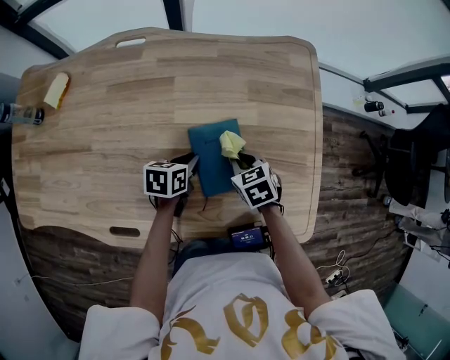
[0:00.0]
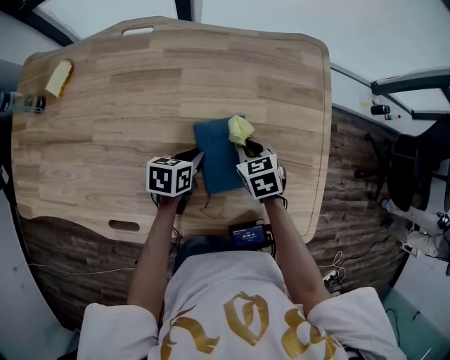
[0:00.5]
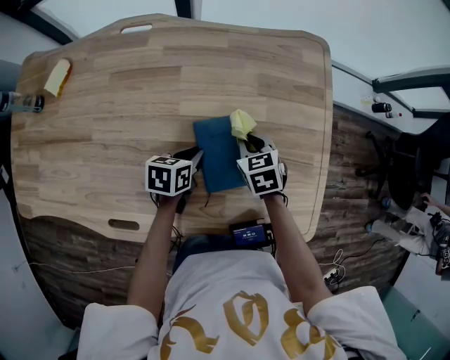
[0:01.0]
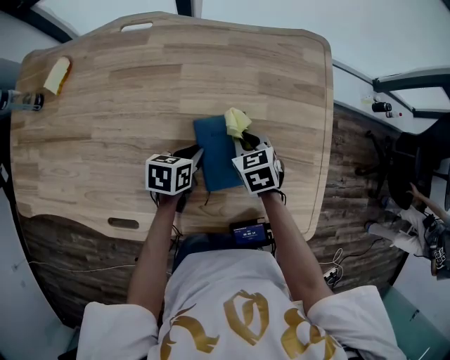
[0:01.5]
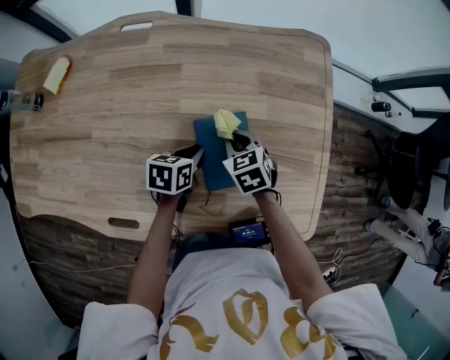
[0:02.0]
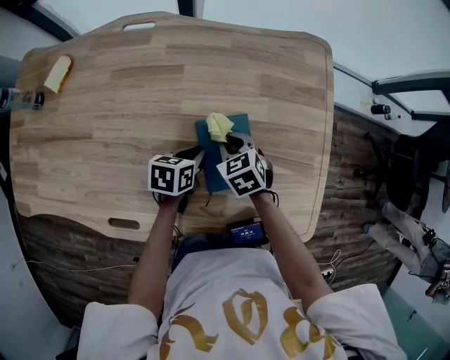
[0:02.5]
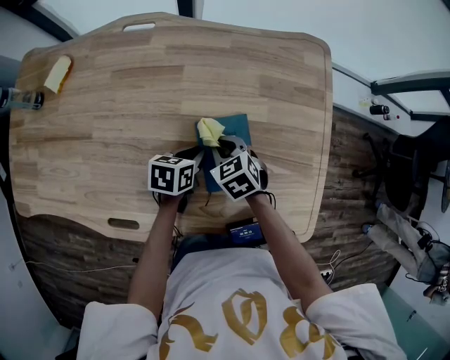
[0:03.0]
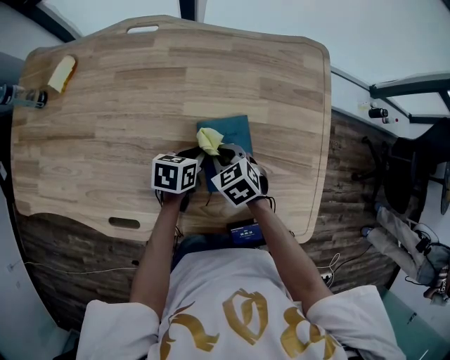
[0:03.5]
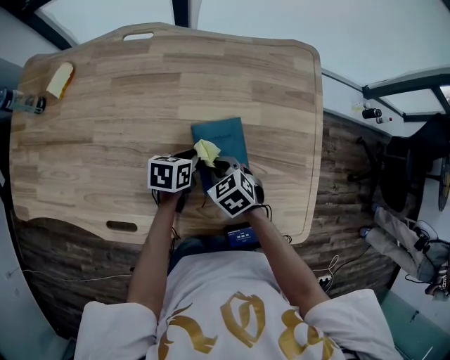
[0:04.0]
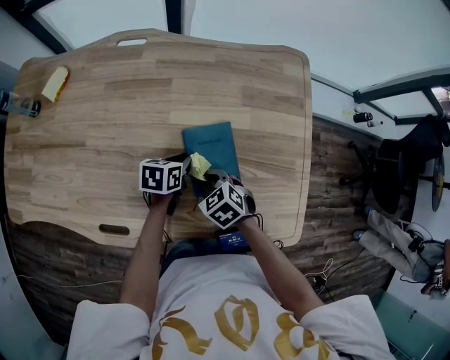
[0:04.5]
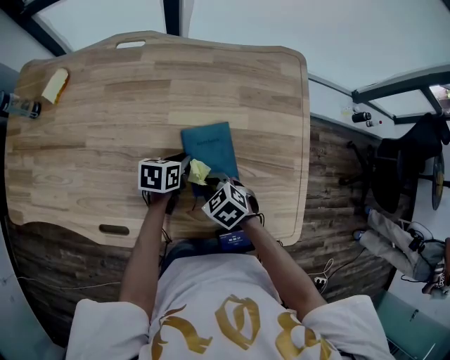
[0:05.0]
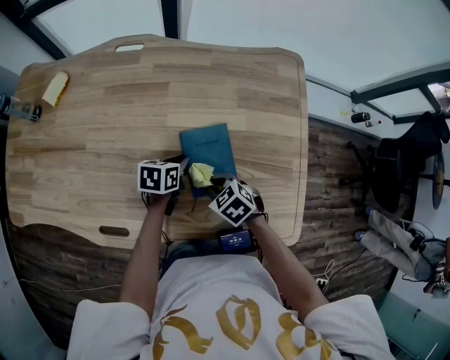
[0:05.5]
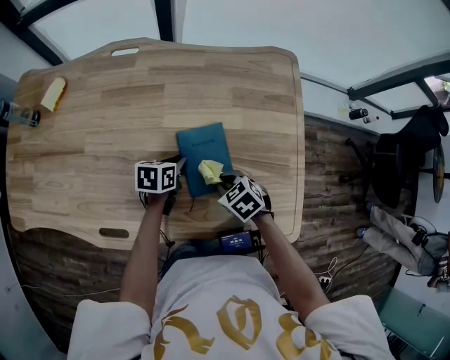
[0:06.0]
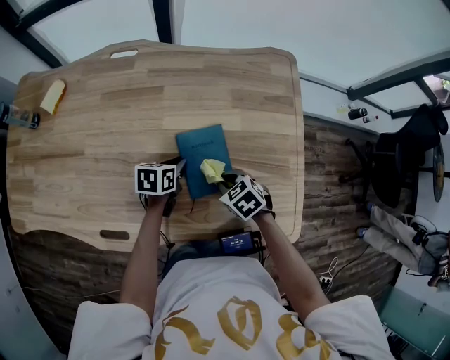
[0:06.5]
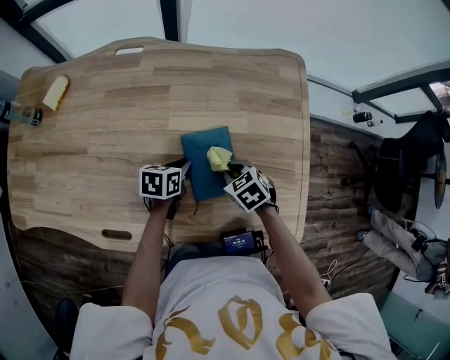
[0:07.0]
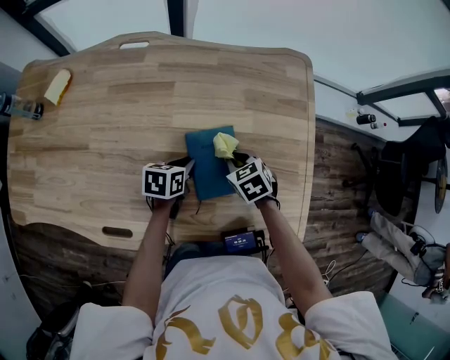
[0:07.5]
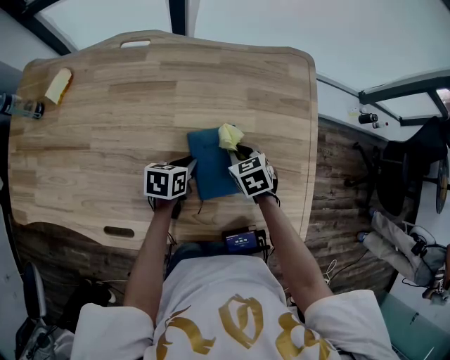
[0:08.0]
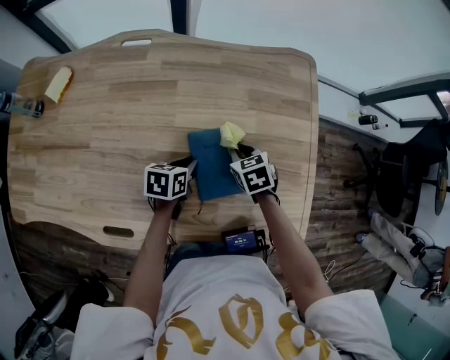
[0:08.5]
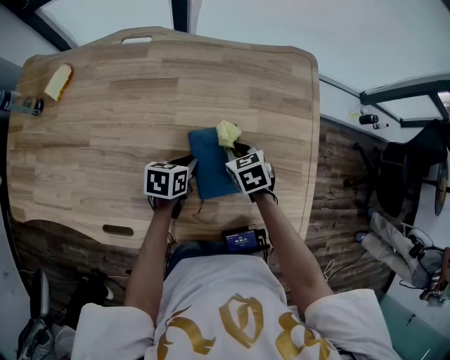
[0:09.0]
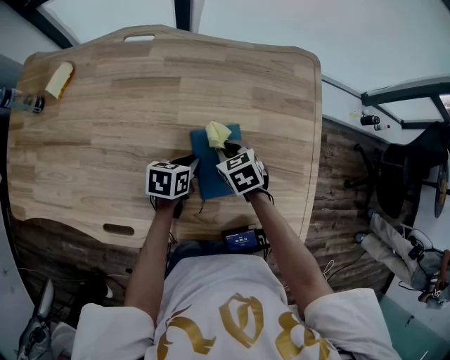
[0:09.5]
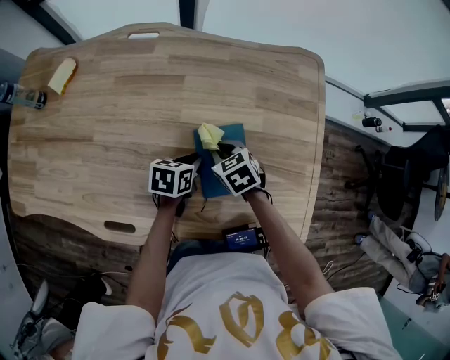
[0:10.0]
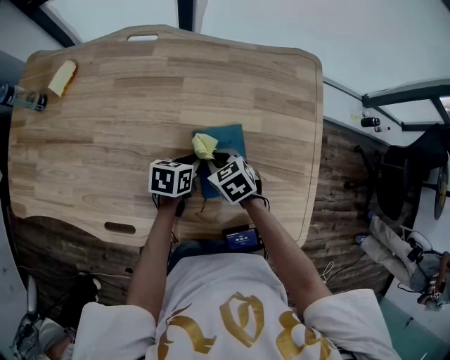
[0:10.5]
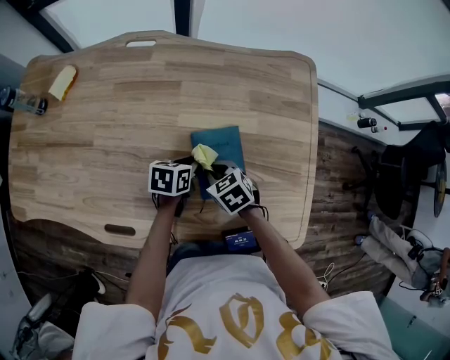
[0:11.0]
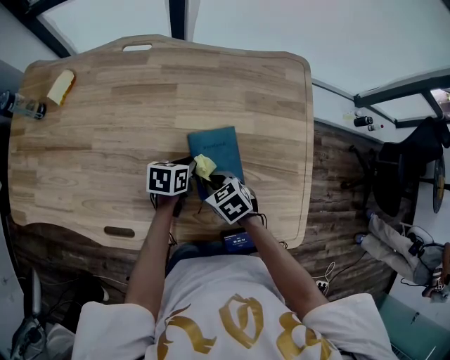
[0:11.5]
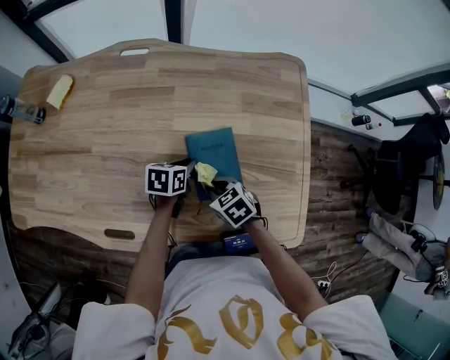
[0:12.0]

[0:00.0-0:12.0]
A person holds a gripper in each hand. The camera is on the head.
0:00.0 to 0:02.0: The right gripper ends up approximately 5 cm from where it was.
0:02.0 to 0:04.0: The right gripper shifts roughly 10 cm backward.
0:04.0 to 0:06.0: The right gripper is displaced to the right by roughly 5 cm.
0:06.0 to 0:08.0: The right gripper moves forward, about 10 cm.
0:08.0 to 0:10.0: The right gripper shifts approximately 10 cm to the left.
0:10.0 to 0:12.0: The right gripper goes some 10 cm backward.

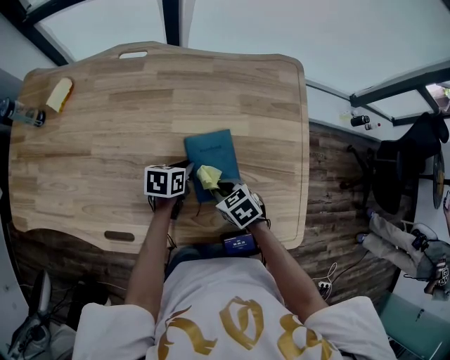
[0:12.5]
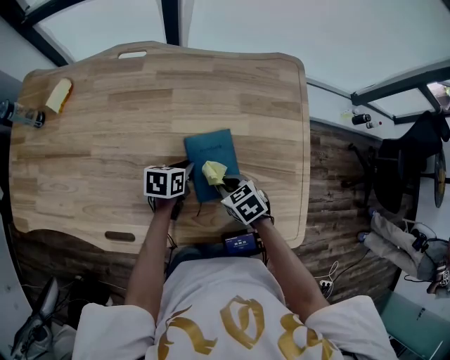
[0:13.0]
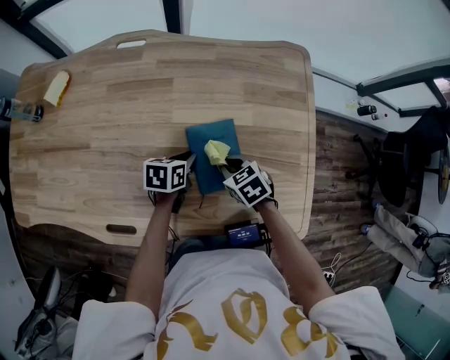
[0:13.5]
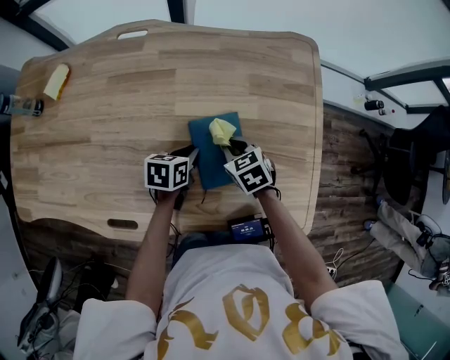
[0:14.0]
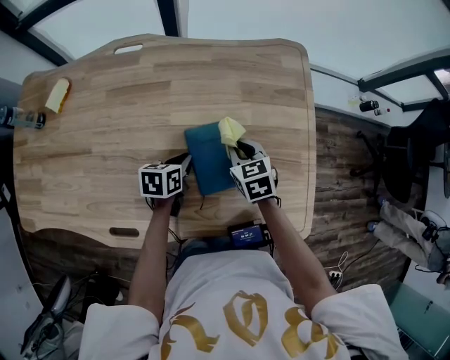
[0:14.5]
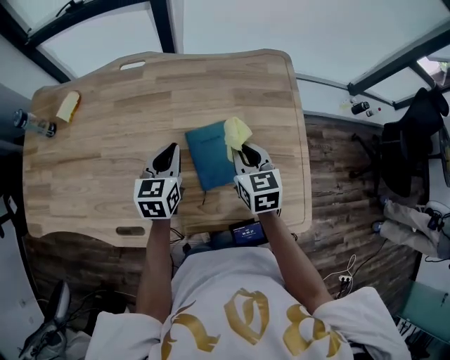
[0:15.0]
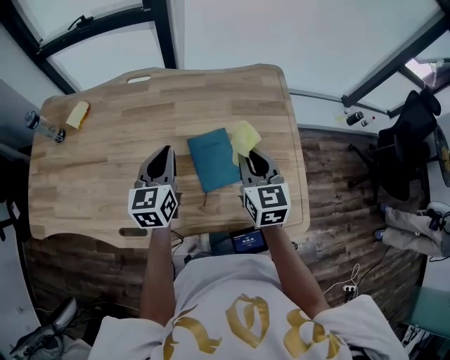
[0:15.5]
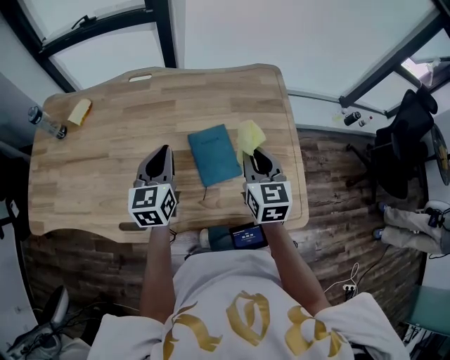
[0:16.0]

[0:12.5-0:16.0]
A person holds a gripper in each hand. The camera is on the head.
0:12.5 to 0:14.5: The right gripper is displaced forward by roughly 10 cm, and rotates some 20 degrees.
0:14.5 to 0:16.0: The right gripper is displaced upward and backward by some 20 cm, and turns by roughly 30 degrees. Meanwhile the left gripper shifts about 25 cm upward, and tips its fingers upward by roughly 30 degrees.

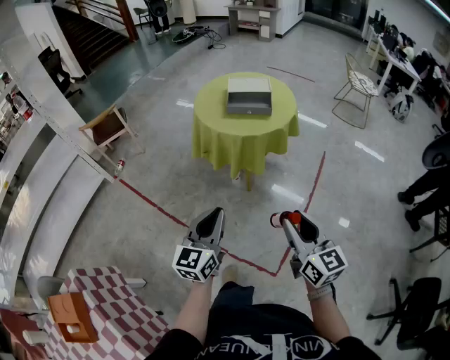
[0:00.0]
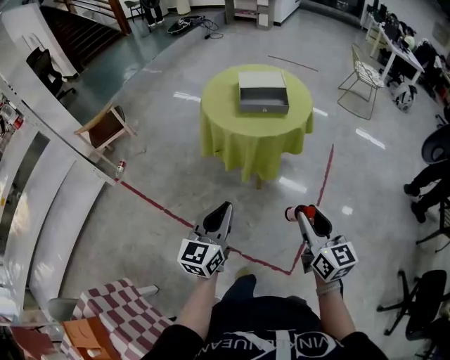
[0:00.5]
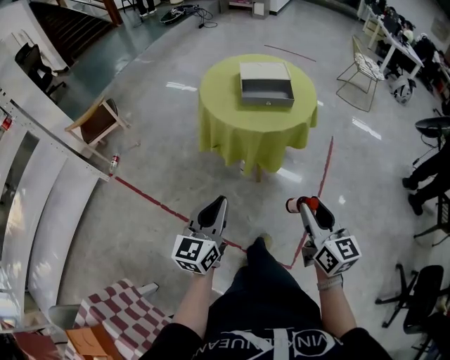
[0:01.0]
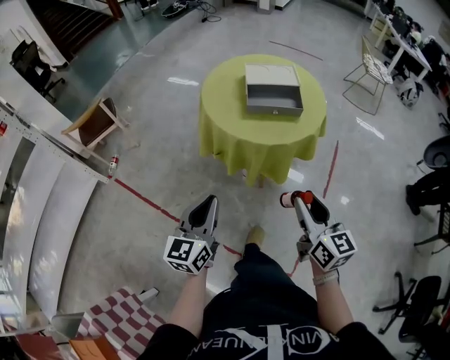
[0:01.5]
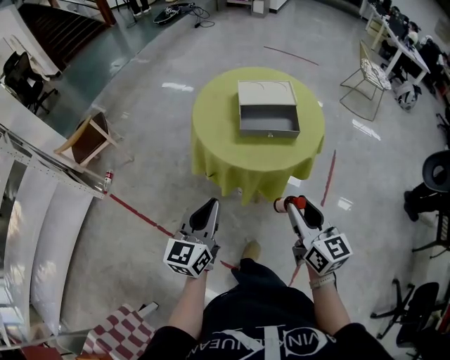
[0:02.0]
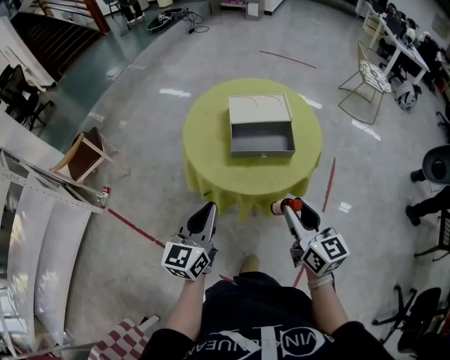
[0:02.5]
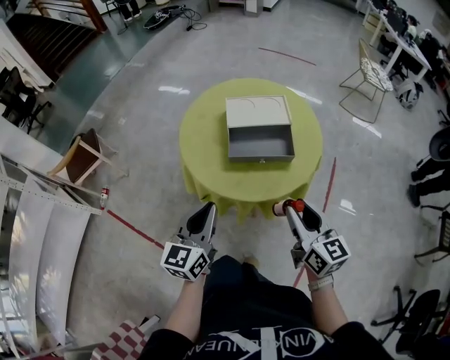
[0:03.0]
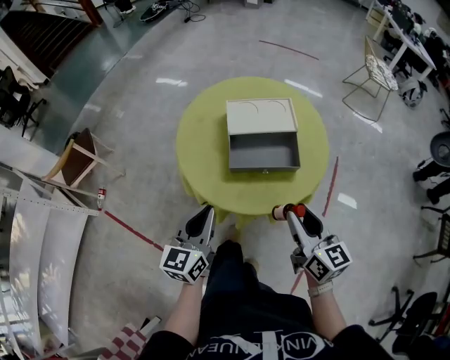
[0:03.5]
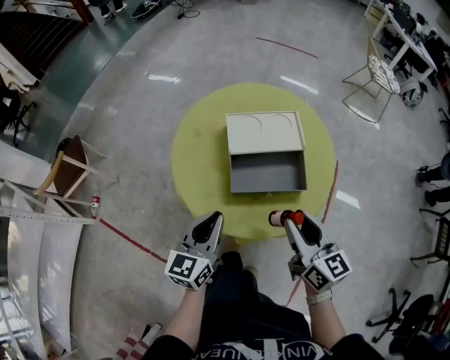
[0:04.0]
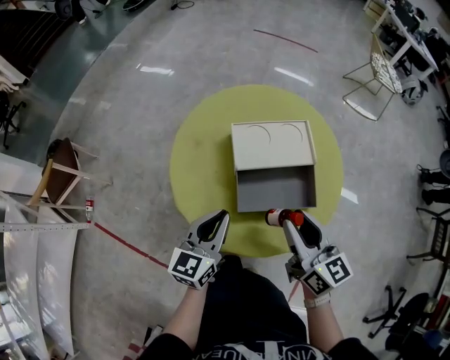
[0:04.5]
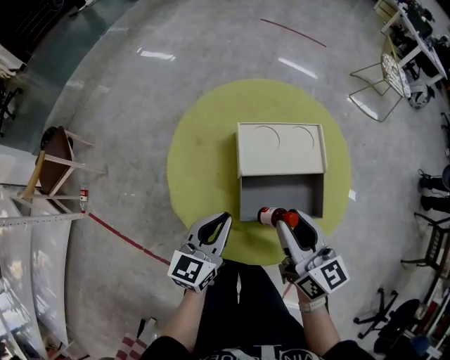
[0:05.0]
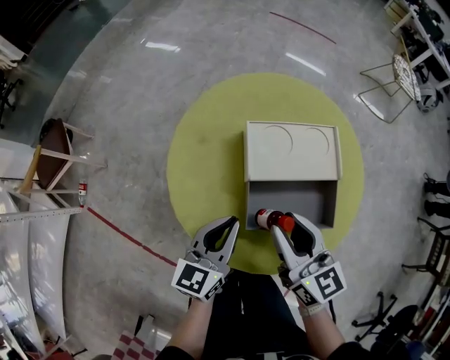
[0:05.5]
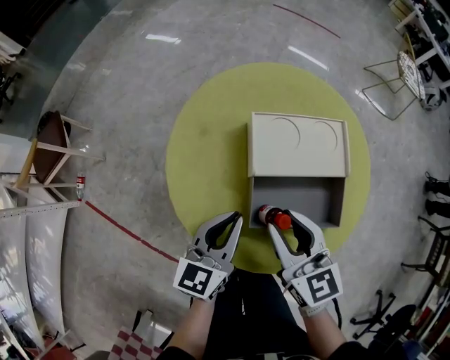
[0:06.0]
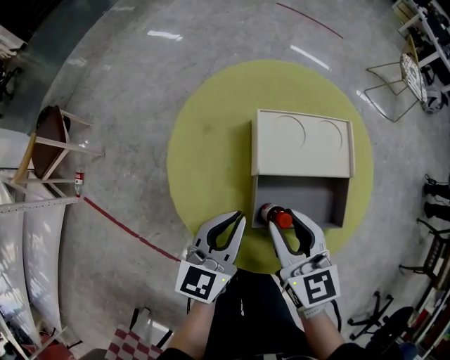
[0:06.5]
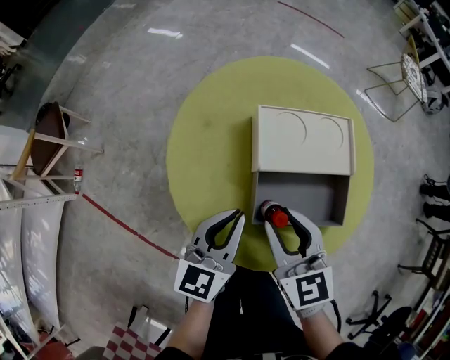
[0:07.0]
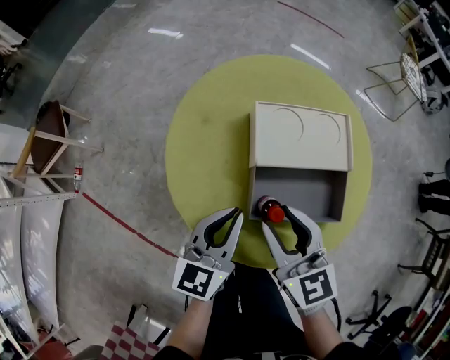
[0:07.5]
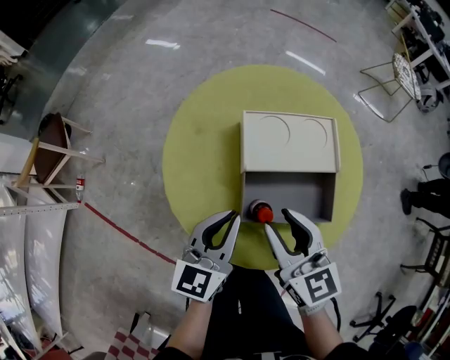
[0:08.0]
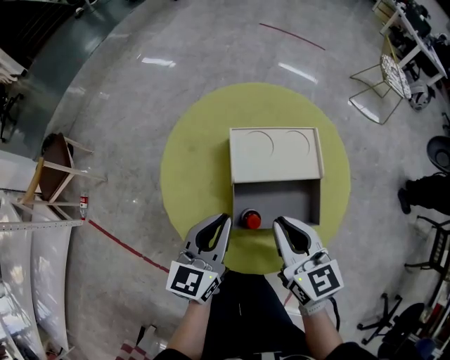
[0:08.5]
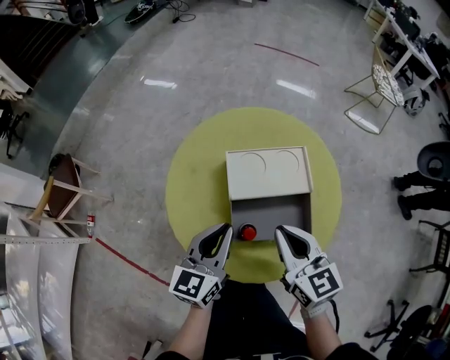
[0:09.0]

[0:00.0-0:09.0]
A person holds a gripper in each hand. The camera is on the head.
0:00.0 to 0:02.0: Both grippers travel together forward, about 30 cm.
0:02.0 to 0:04.5: The grippers both shift forward by roughly 30 cm.
0:04.5 to 0:07.0: The right gripper travels to the left and downward by roughly 10 cm, and turns by about 30 degrees.
0:07.0 to 0:09.0: The left gripper shifts approximately 5 cm upward, while the right gripper travels to the right and upward by about 10 cm, and closes its fingers.

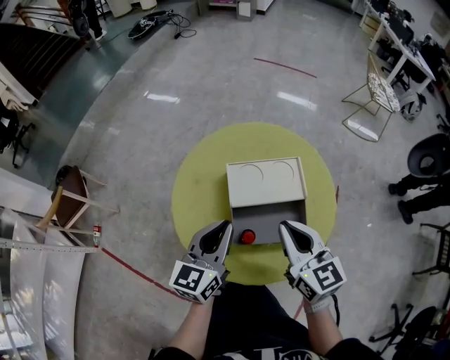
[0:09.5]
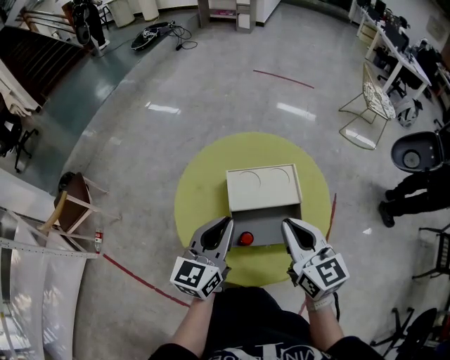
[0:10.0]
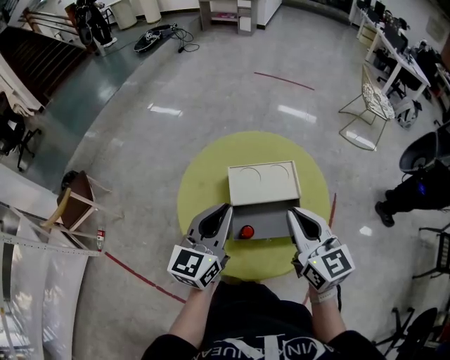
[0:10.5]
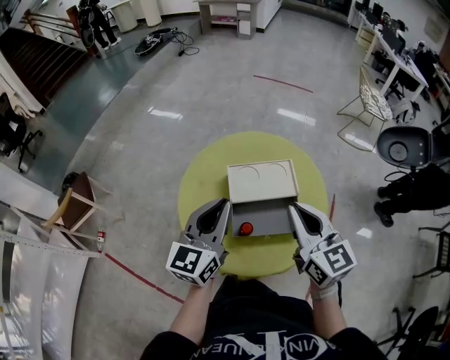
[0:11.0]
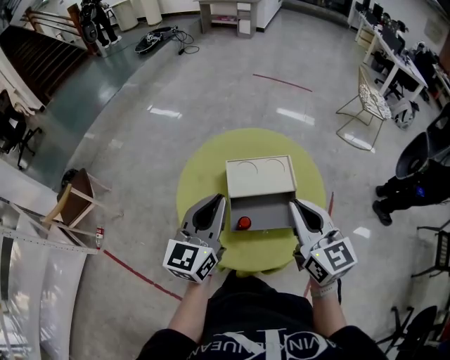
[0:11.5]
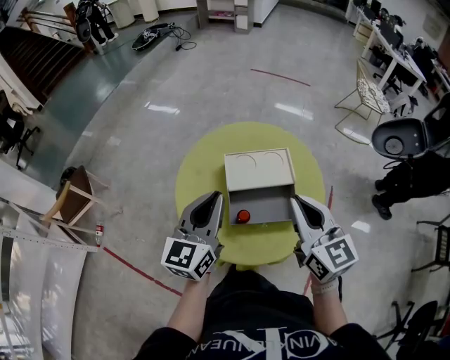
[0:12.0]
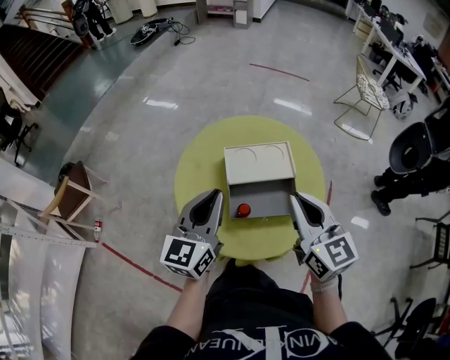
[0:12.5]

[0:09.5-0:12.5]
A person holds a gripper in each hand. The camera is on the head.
0:09.5 to 0:11.0: The two grippers go some 10 cm upward.
0:11.0 to 0:12.5: The grippers stay close to where they were, moving slightly.
